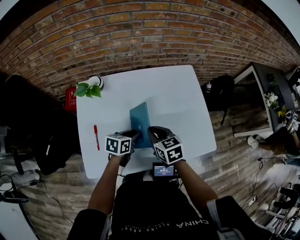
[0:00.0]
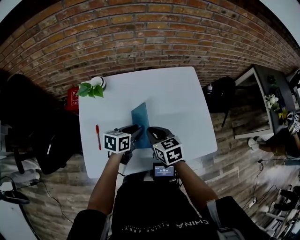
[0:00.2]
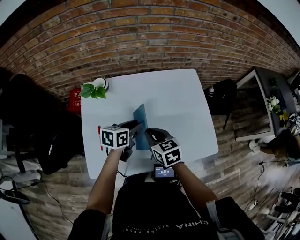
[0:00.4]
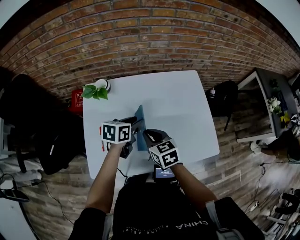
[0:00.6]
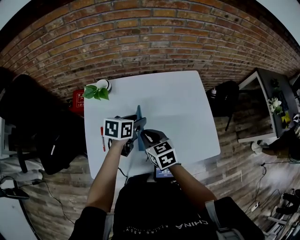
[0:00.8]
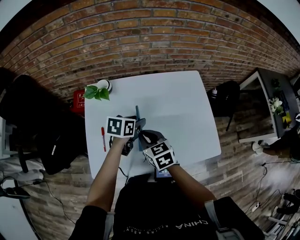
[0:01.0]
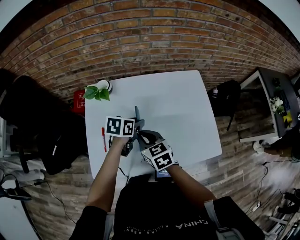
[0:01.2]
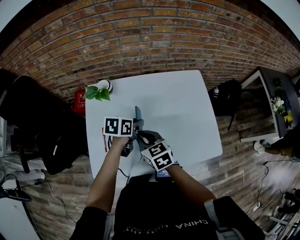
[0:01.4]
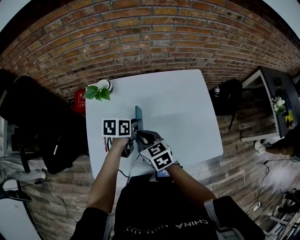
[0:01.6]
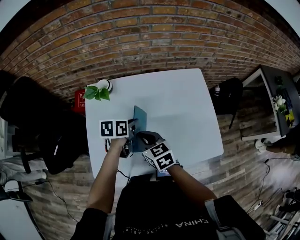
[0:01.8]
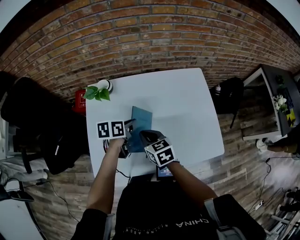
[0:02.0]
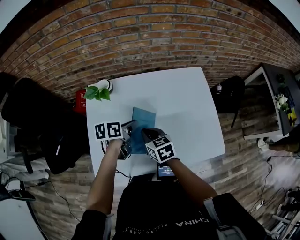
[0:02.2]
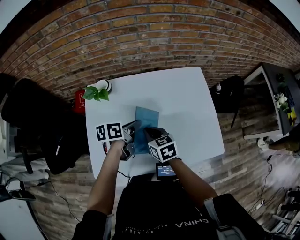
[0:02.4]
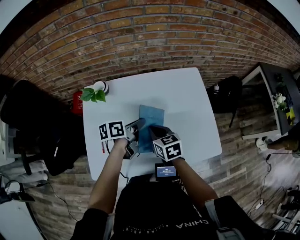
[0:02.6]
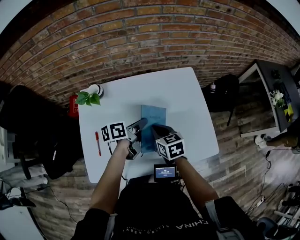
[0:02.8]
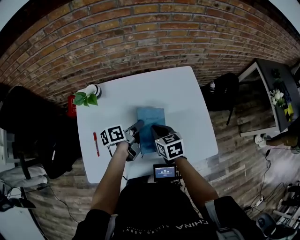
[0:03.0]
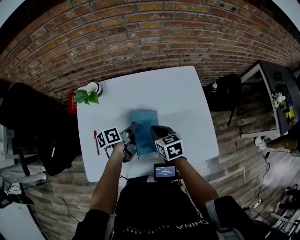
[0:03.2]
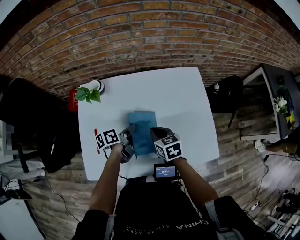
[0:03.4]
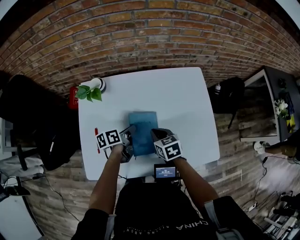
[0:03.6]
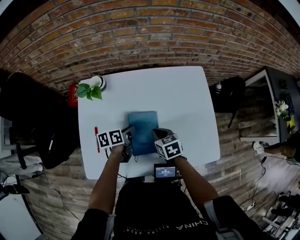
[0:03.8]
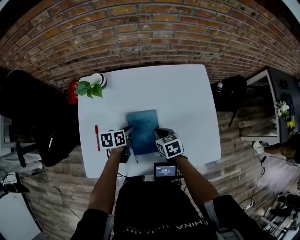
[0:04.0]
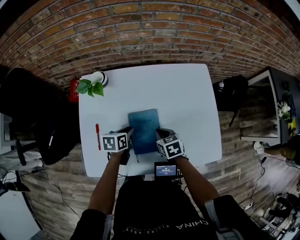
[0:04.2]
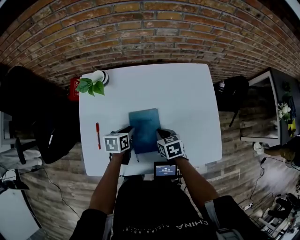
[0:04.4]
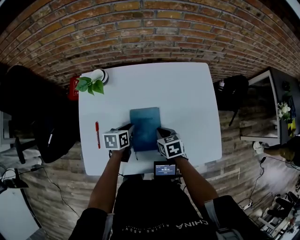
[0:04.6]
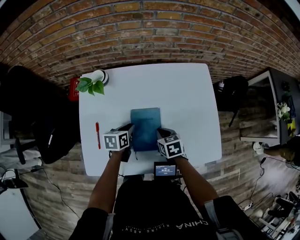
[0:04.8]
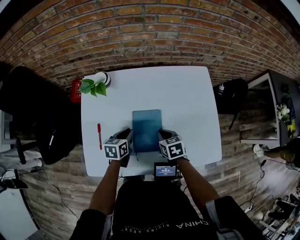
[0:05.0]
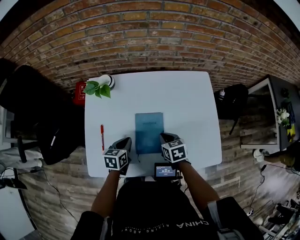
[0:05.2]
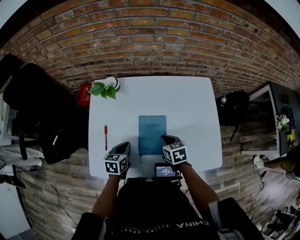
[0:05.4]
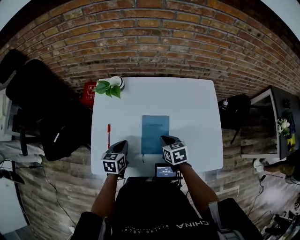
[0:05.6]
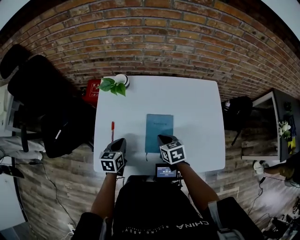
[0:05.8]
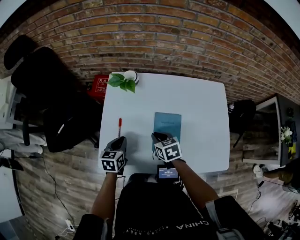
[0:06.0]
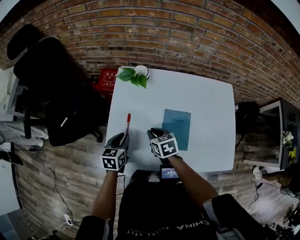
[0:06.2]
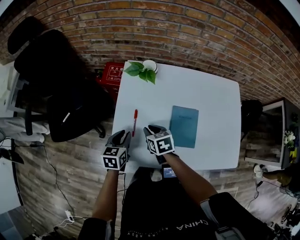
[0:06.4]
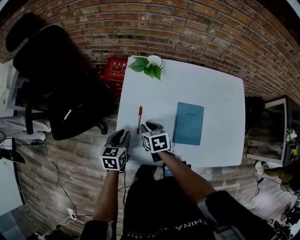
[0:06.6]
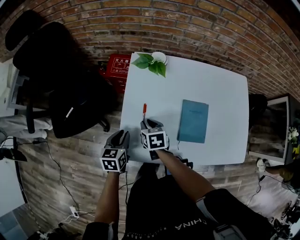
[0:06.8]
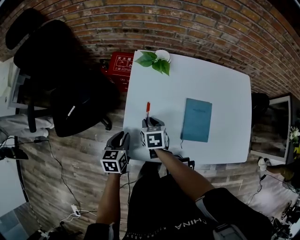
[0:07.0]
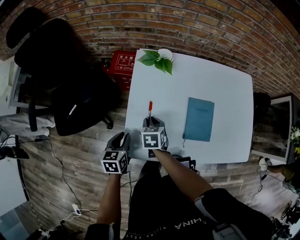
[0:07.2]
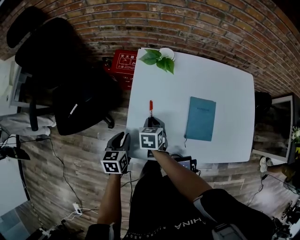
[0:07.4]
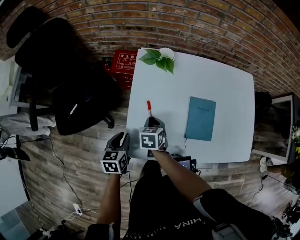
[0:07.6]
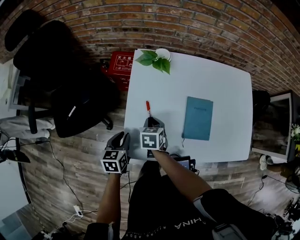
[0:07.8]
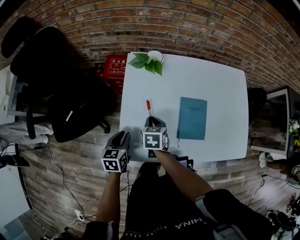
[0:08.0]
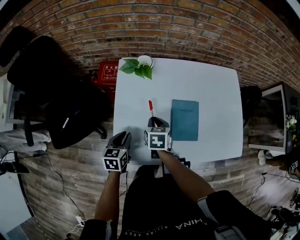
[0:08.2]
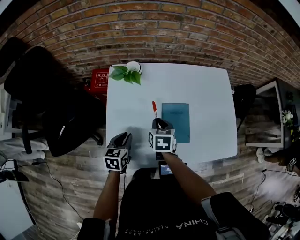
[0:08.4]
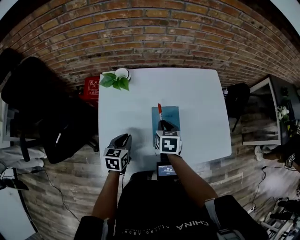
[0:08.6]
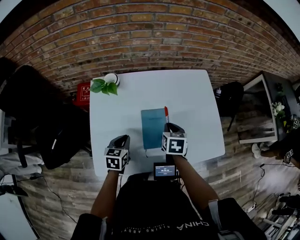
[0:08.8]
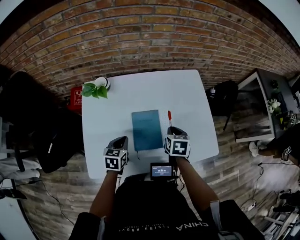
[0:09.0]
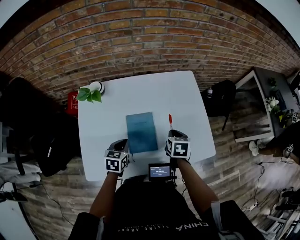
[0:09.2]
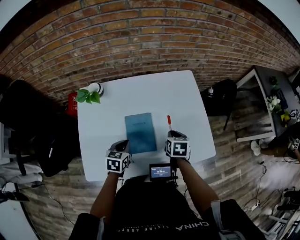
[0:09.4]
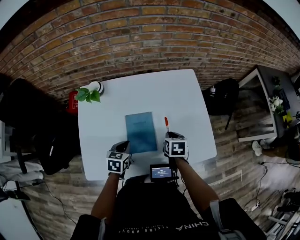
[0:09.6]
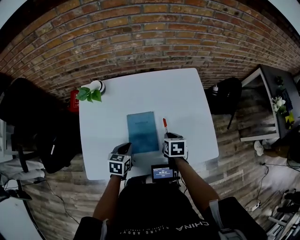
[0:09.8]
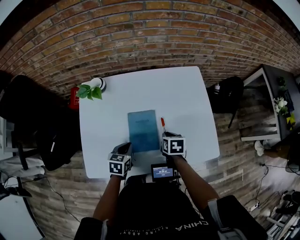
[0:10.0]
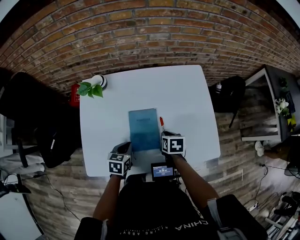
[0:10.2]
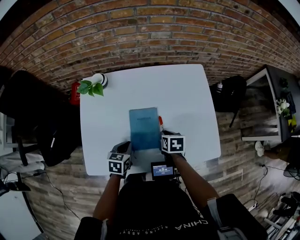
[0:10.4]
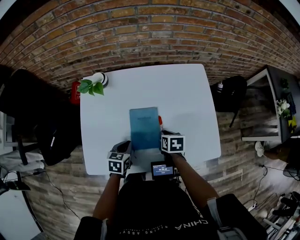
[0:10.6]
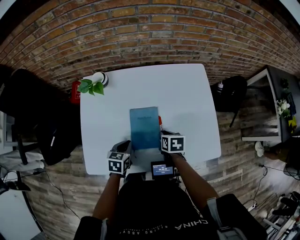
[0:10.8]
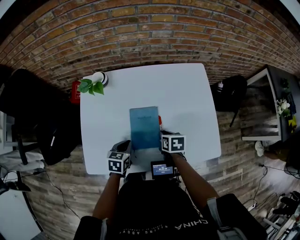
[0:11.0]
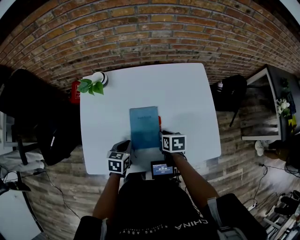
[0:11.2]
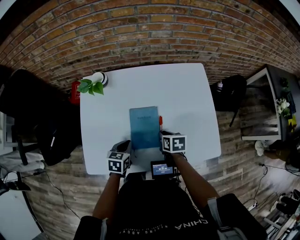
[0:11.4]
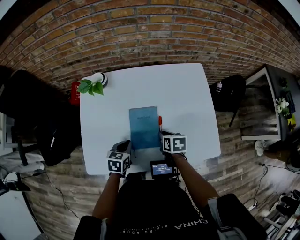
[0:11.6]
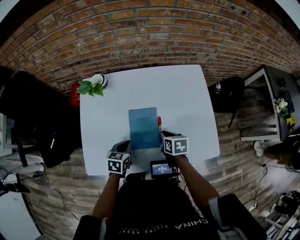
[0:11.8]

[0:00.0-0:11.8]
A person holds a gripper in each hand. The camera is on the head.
0:00.0 to 0:01.4: The left gripper goes about 10 cm upward and forward. Meanwhile the right gripper goes some 10 cm to the left.
0:01.4 to 0:03.0: The left gripper heads to the right, covering some 5 cm, and turns by some 40 degrees; the right gripper moves to the right and forward, approximately 15 cm.
0:03.0 to 0:04.4: The left gripper is displaced downward and to the left by some 15 cm, and turns by about 40 degrees. The right gripper goes roughly 10 cm downward.
0:04.4 to 0:06.0: The right gripper is displaced to the left by roughly 15 cm; the left gripper shifts about 15 cm to the left and backward, and changes its angle by roughly 20 degrees.
0:06.0 to 0:07.4: Both grippers move to the left, about 15 cm. The right gripper changes its angle by roughly 20 degrees.
0:07.4 to 0:08.8: The left gripper shifts about 25 cm to the right and forward, and turns by roughly 20 degrees; the right gripper heads to the right, covering some 30 cm.
0:08.8 to 0:10.4: The right gripper travels downward and to the right by approximately 10 cm. The left gripper heads to the right, covering roughly 10 cm.
0:10.4 to 0:11.8: The grippers move only a little.

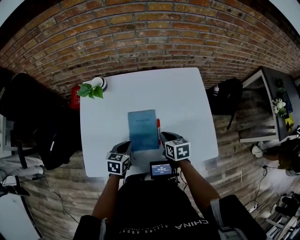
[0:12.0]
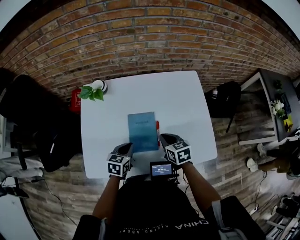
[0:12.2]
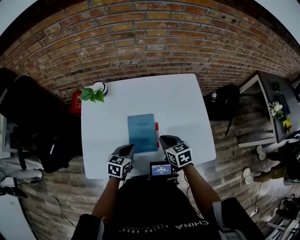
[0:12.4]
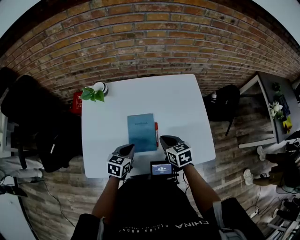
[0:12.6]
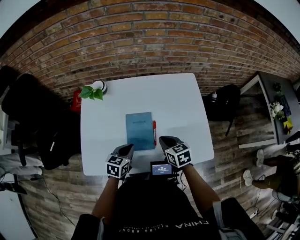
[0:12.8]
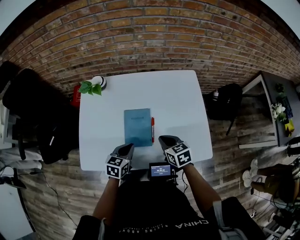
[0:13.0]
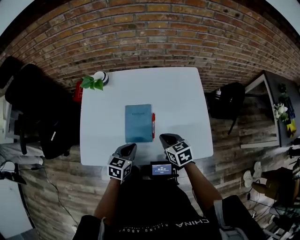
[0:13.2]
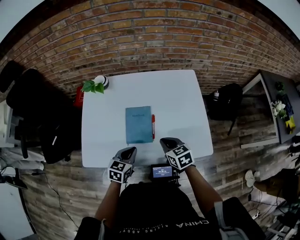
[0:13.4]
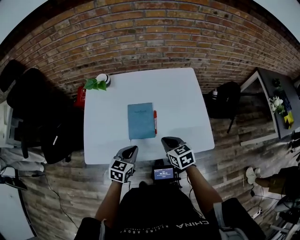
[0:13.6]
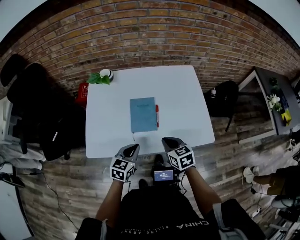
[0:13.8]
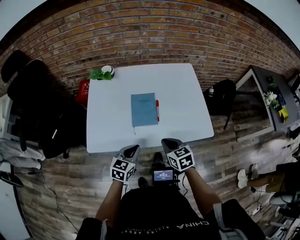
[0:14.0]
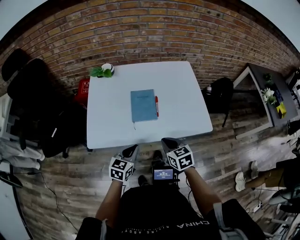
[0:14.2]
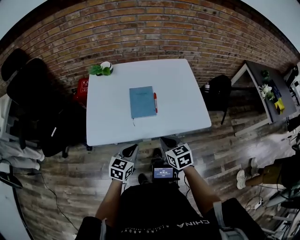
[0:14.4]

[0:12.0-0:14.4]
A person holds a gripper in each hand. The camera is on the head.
0:12.0 to 0:13.2: The left gripper moves to the right and backward, roughly 10 cm. The right gripper goes roughly 5 cm backward.
0:13.2 to 0:14.4: The two grippers go some 20 cm backward.

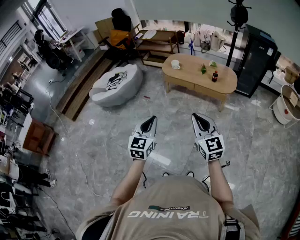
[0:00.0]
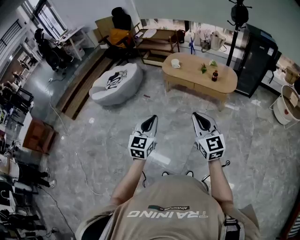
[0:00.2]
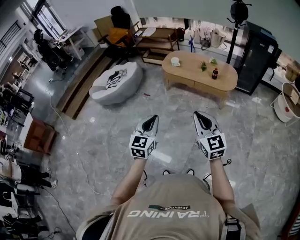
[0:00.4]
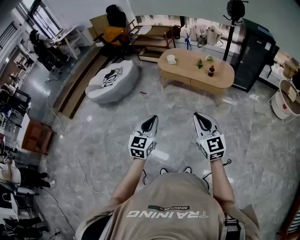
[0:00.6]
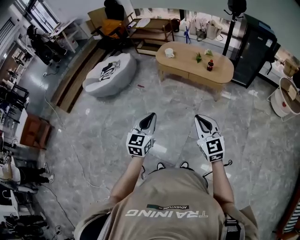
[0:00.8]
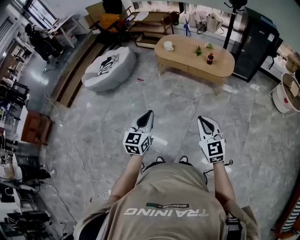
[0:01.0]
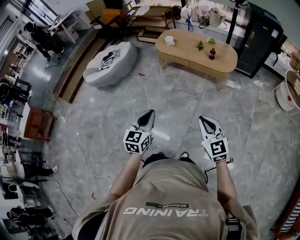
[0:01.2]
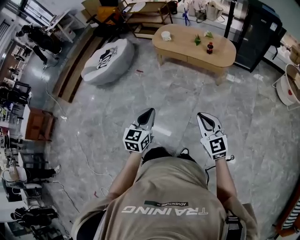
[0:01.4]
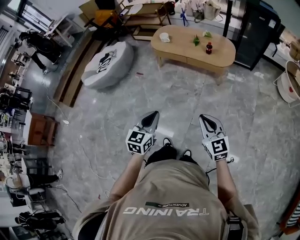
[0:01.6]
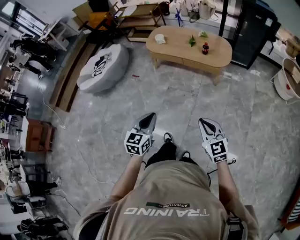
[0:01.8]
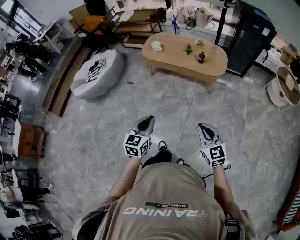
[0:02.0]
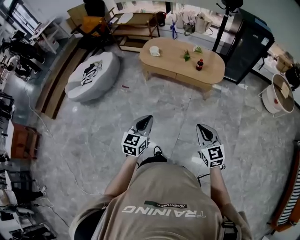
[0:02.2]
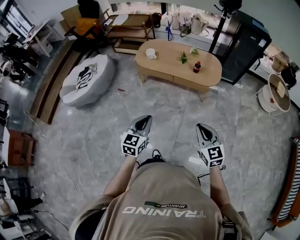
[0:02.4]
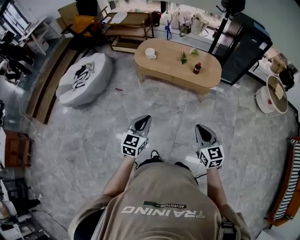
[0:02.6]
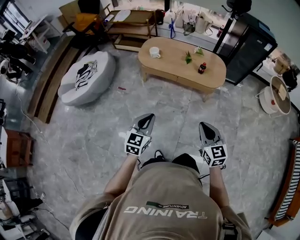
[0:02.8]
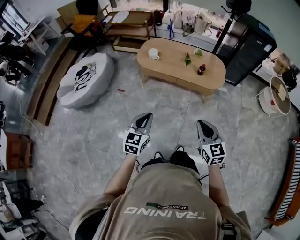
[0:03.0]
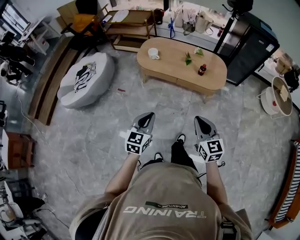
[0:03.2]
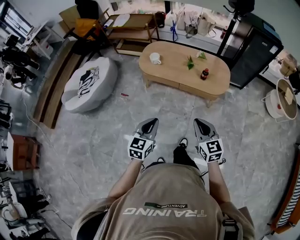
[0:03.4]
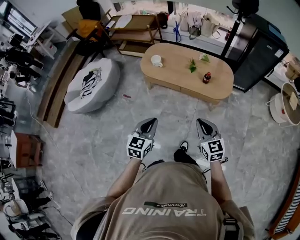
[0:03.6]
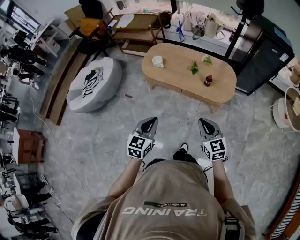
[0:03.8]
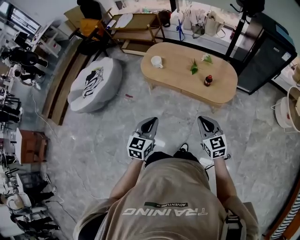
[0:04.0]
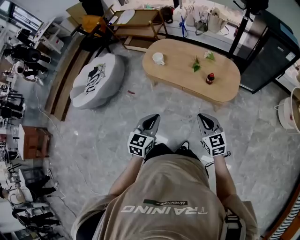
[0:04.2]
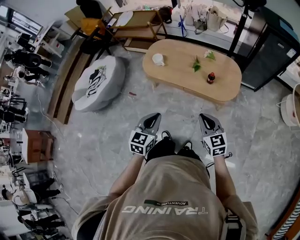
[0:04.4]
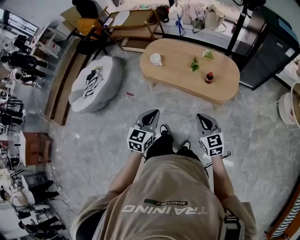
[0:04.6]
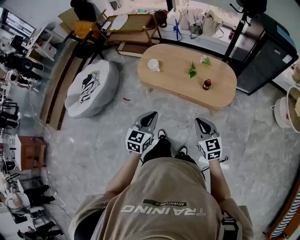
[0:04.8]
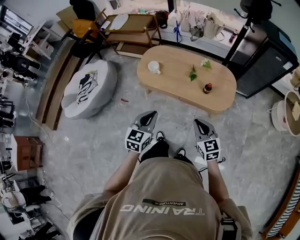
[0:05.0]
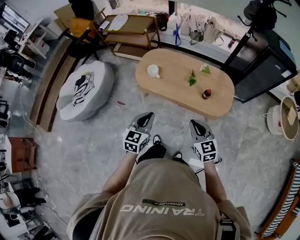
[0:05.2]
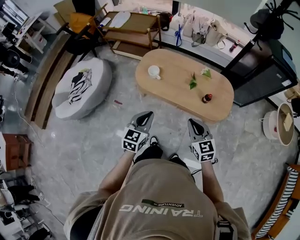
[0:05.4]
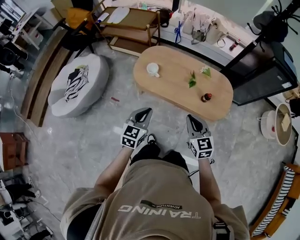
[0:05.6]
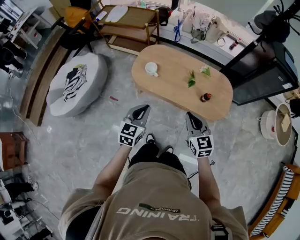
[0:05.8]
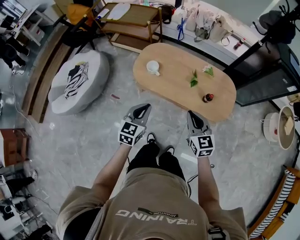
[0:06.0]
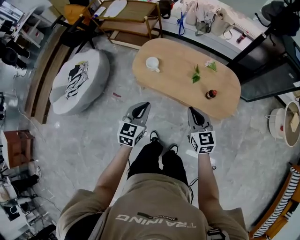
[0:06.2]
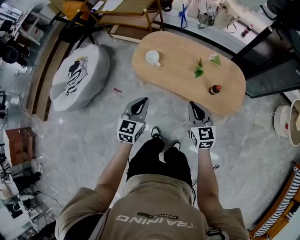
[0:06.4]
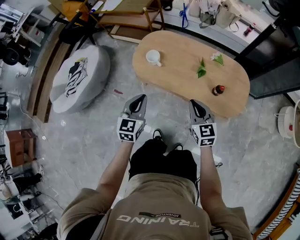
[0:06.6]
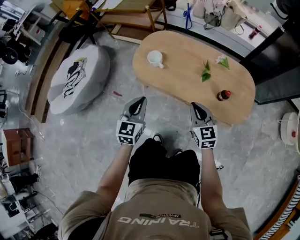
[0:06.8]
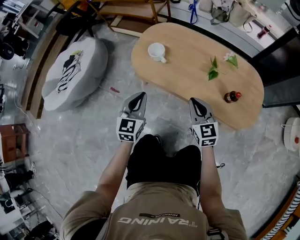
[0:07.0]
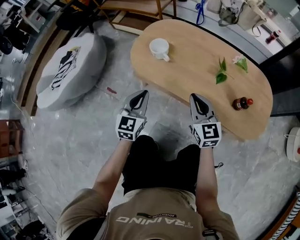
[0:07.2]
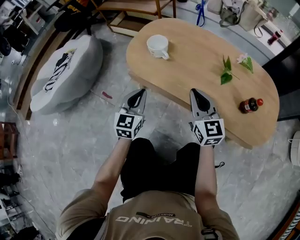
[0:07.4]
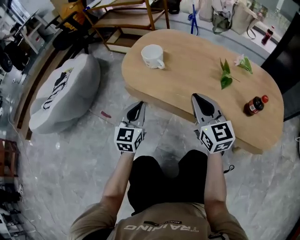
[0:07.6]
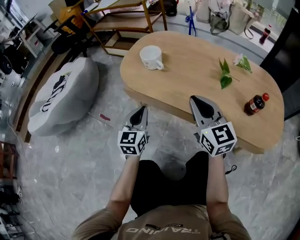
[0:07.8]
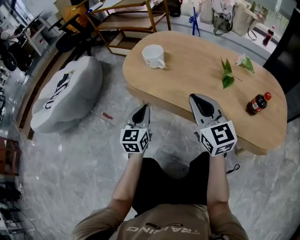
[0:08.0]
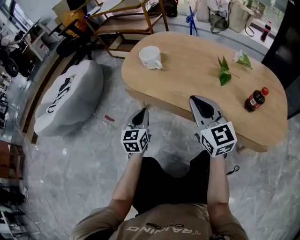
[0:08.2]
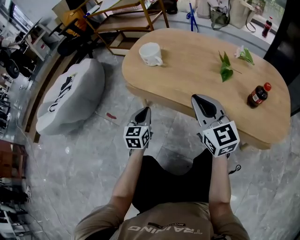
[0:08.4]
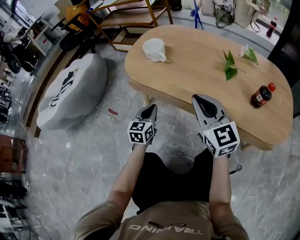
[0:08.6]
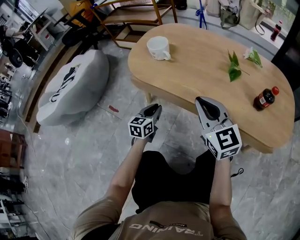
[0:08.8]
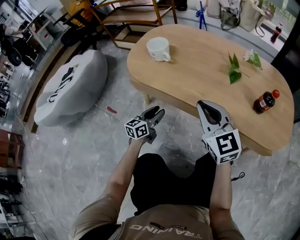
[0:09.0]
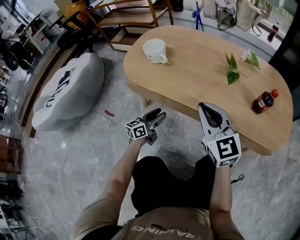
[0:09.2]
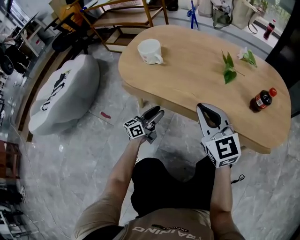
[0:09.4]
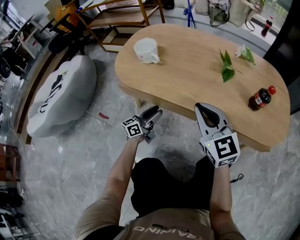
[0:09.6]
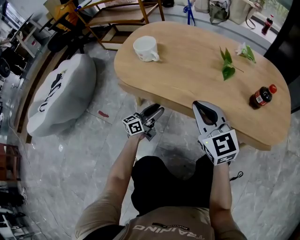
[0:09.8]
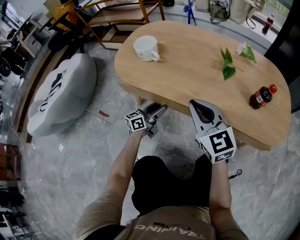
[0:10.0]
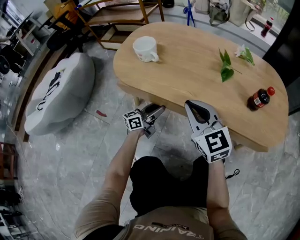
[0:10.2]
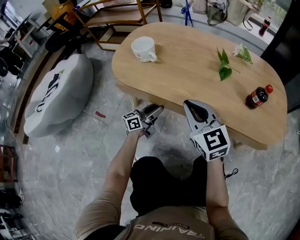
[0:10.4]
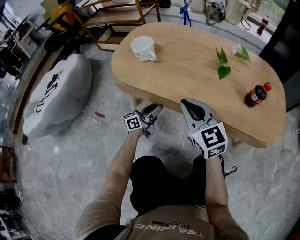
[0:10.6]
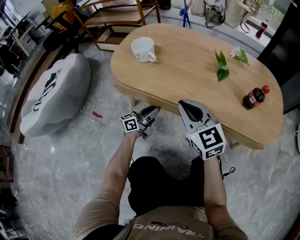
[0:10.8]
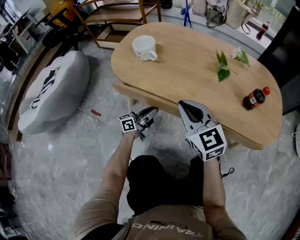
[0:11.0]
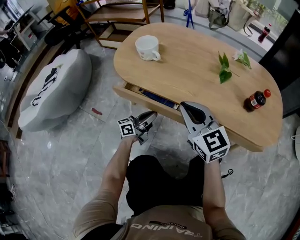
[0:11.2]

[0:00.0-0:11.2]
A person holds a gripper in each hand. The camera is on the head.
0:00.0 to 0:01.6: The grippers both shift to the right and downward by roughly 15 cm.
0:01.6 to 0:03.2: Both grippers travel together forward, some 25 cm.
0:03.2 to 0:04.8: The two grippers go about 20 cm forward and to the right.
0:04.8 to 0:06.4: The left gripper shifts some 20 cm forward, downward and to the left, while the right gripper moves forward, about 20 cm.
0:06.4 to 0:08.0: The left gripper goes some 40 cm downward. The right gripper is displaced downward and forward by roughly 30 cm, and swivels roughly 20 degrees.
0:08.0 to 0:09.6: The left gripper shifts roughly 15 cm downward, changes its angle by approximately 50 degrees, and opens its fingers, while the right gripper moves roughly 5 cm.
0:09.6 to 0:11.2: The left gripper closes its fingers.
